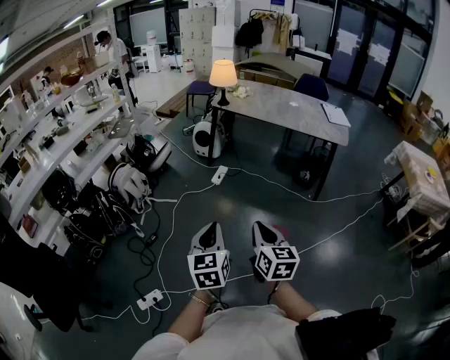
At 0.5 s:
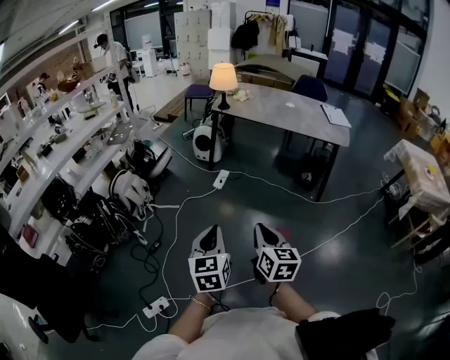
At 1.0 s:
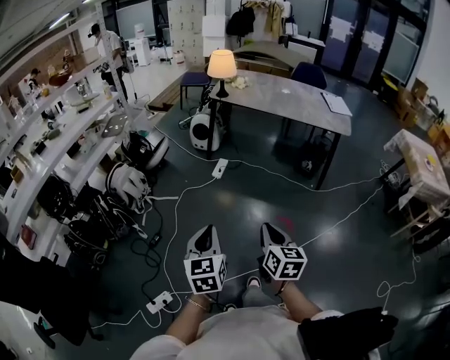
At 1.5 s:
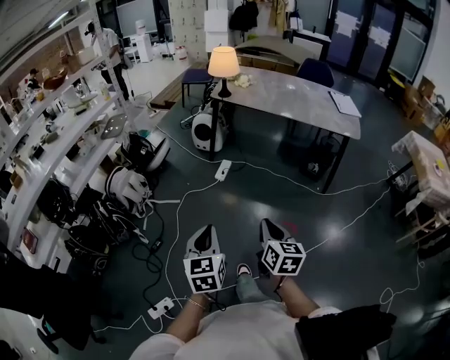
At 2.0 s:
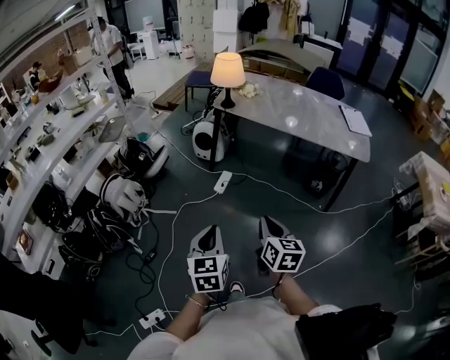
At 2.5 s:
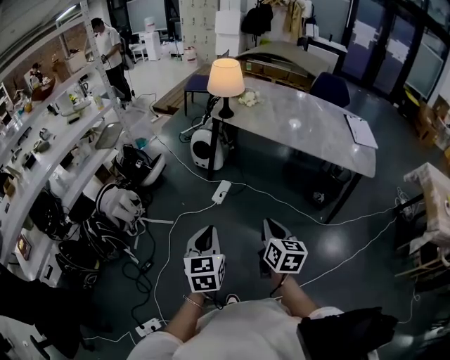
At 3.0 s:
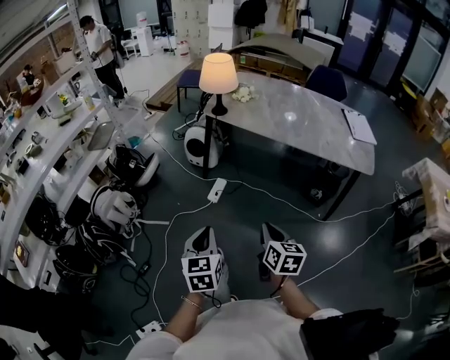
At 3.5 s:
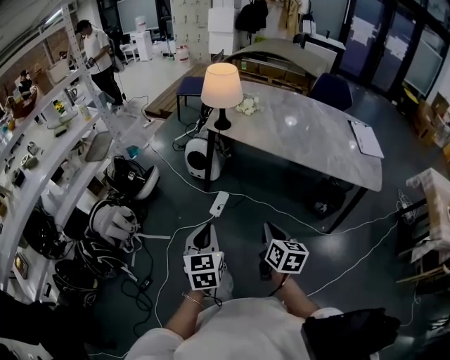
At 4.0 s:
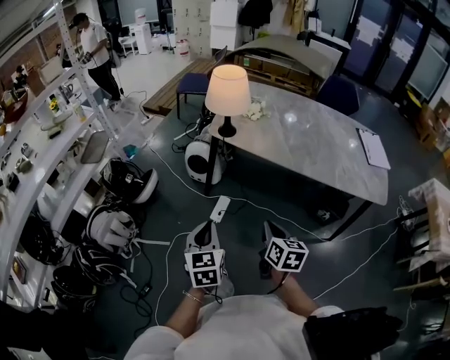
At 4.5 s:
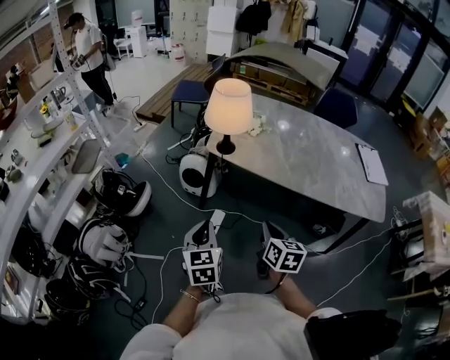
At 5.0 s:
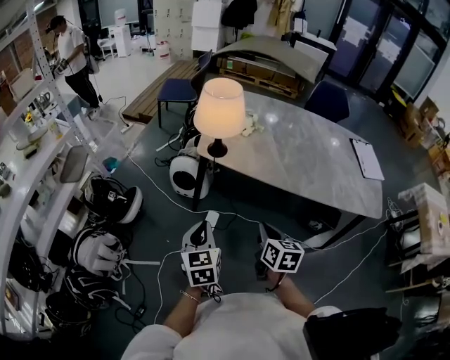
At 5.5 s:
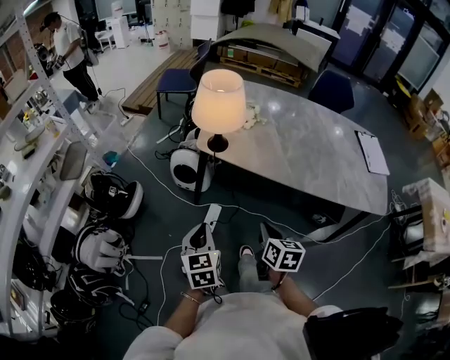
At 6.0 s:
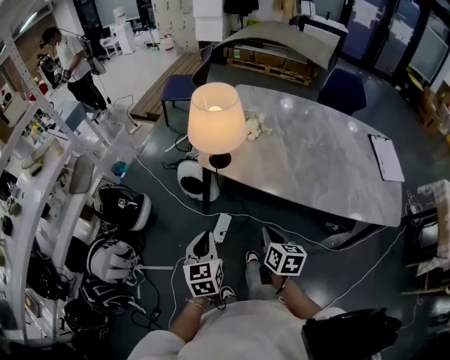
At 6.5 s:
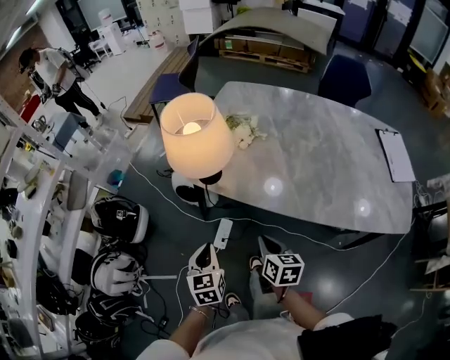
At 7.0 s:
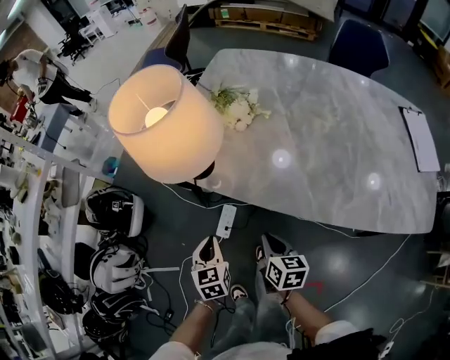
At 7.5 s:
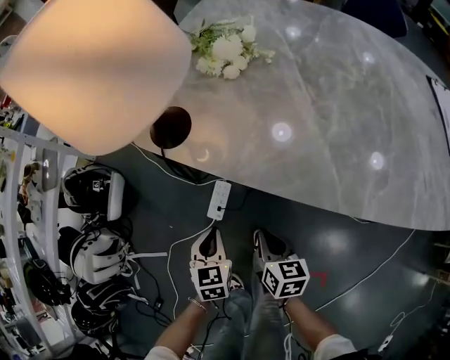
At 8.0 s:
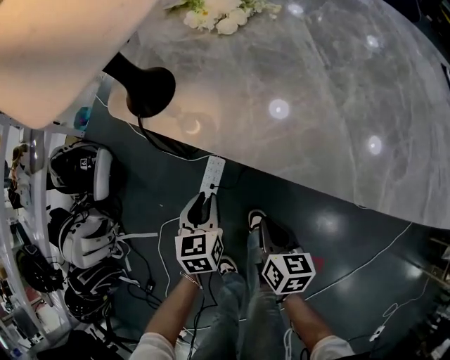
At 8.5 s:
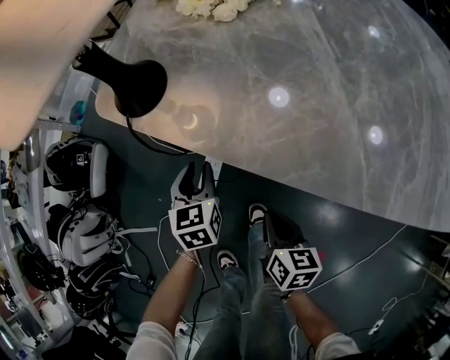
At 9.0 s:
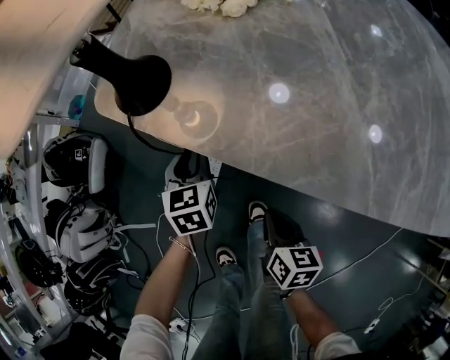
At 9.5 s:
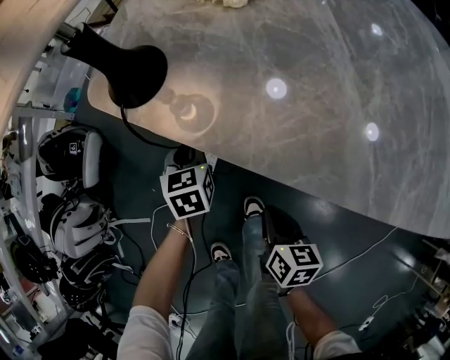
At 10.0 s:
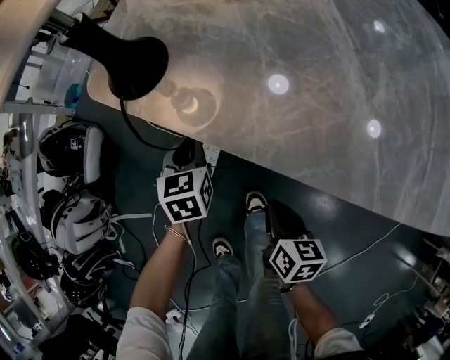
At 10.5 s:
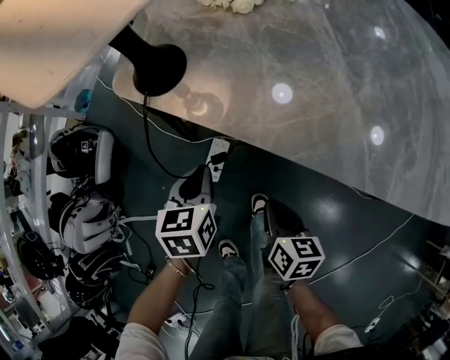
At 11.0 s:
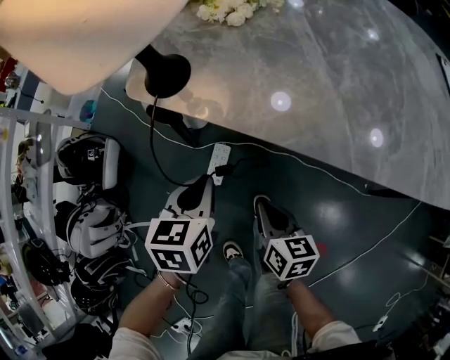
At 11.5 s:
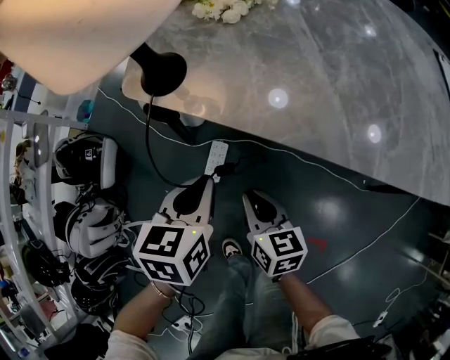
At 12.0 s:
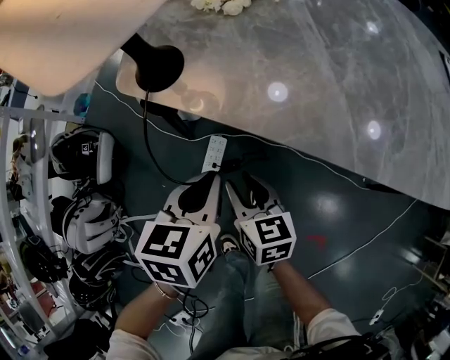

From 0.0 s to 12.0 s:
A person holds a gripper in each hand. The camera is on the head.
From 0.0 s to 2.0 s: Both grippers travel together forward, about 25 cm.
From 2.0 s to 4.0 s: Both grippers move forward, approximately 35 cm.
From 4.0 s to 6.0 s: The two grippers go some 20 cm forward.
From 6.0 s to 8.0 s: The left gripper travels downward and forward by roughly 40 cm, while the right gripper moves downward, some 30 cm.
From 8.0 s to 10.0 s: The left gripper is displaced forward by some 10 cm.
From 10.0 s to 12.0 s: The left gripper shifts about 20 cm upward and backward; the right gripper heads to the left and upward, covering about 15 cm, and opens up.

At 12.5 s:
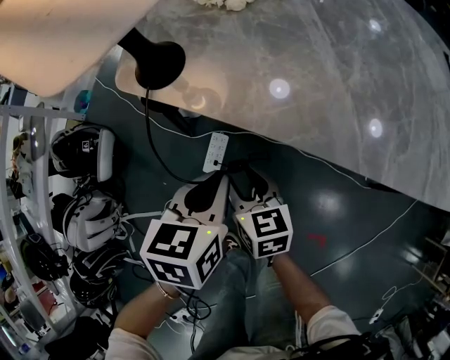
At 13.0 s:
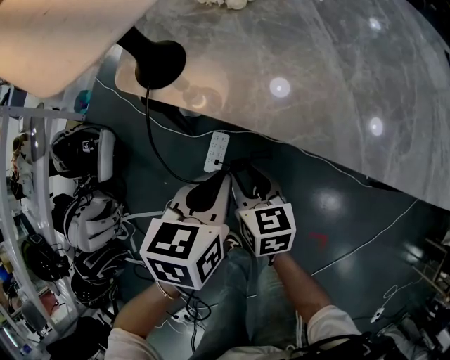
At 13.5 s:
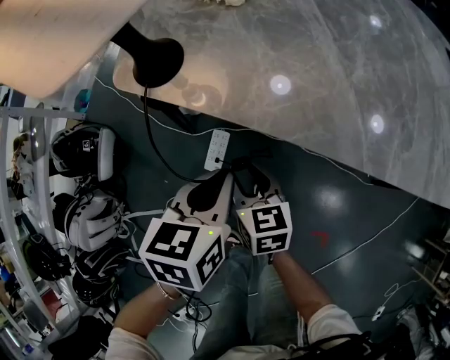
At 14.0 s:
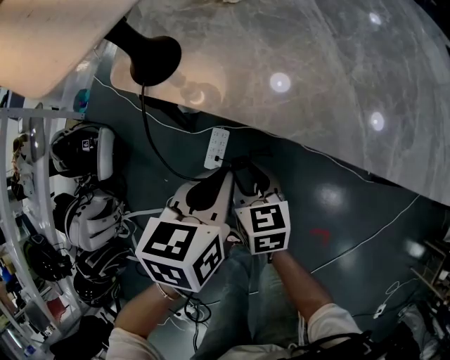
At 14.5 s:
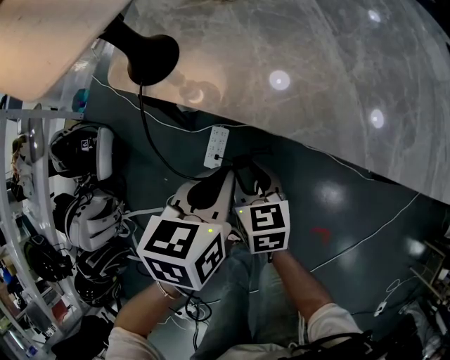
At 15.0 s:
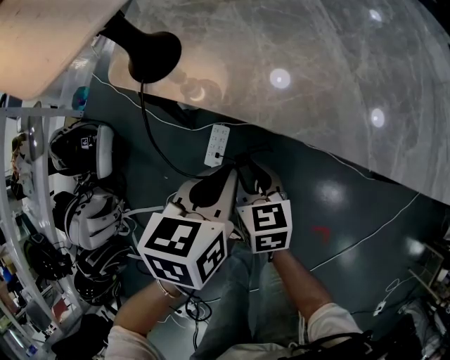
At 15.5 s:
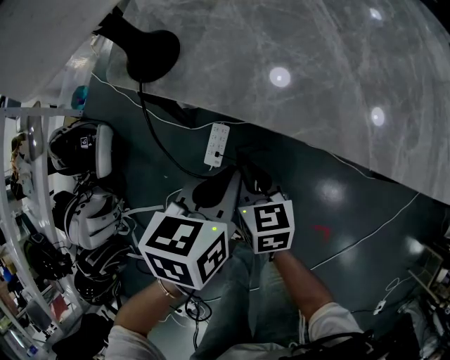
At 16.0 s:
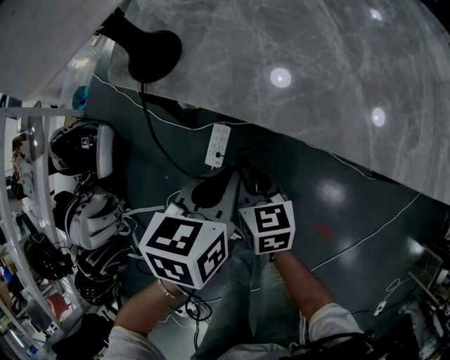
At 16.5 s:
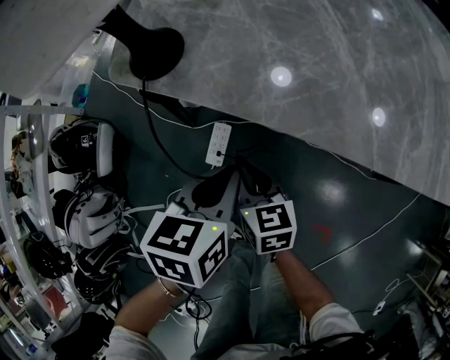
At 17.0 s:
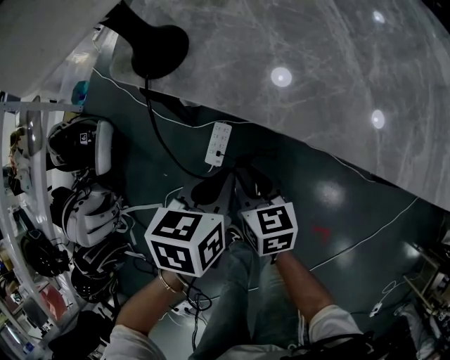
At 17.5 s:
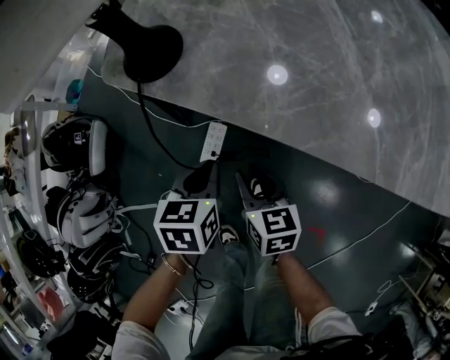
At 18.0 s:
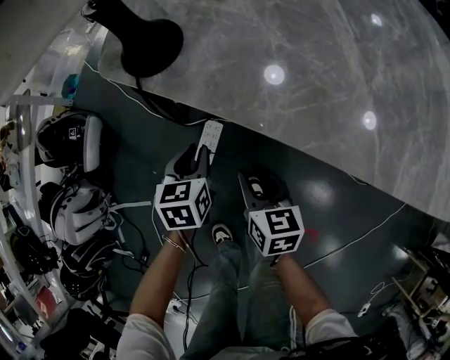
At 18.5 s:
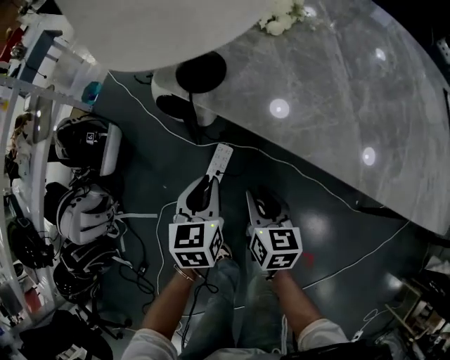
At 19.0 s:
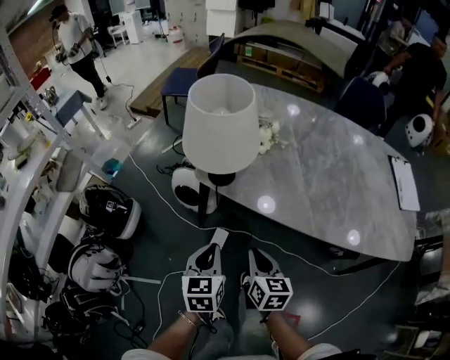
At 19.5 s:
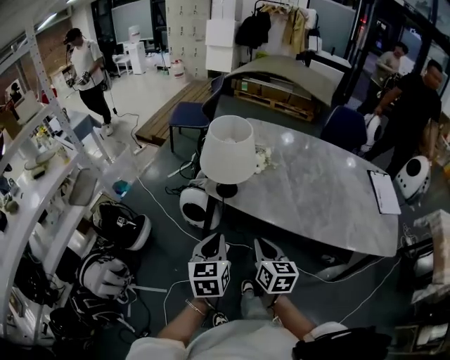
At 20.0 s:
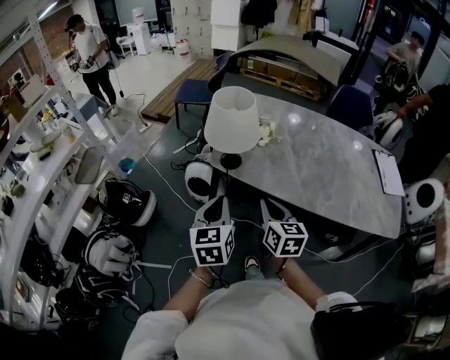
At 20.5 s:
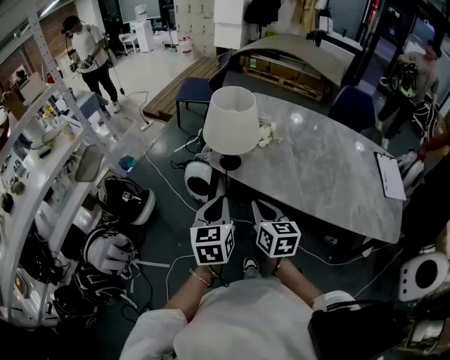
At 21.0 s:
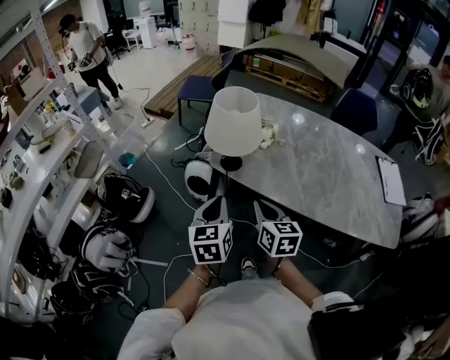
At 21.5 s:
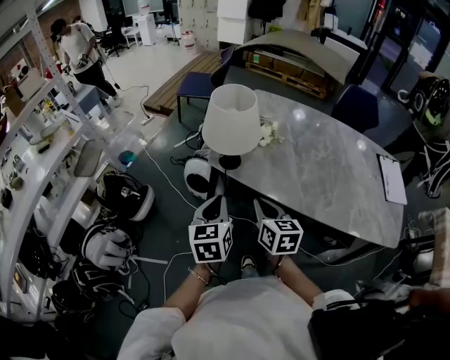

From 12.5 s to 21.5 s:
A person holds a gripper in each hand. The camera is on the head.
From 12.5 s to 14.5 s: The grippers stay close to where they were, moving slightly.
From 14.5 s to 17.0 s: The left gripper moves approximately 5 cm.
From 17.0 s to 19.5 s: Both grippers travel together upward, roughly 35 cm. The right gripper closes; the left gripper swivels approximately 40 degrees.
From 19.5 s to 21.5 s: The right gripper ends up about 5 cm from where it was.

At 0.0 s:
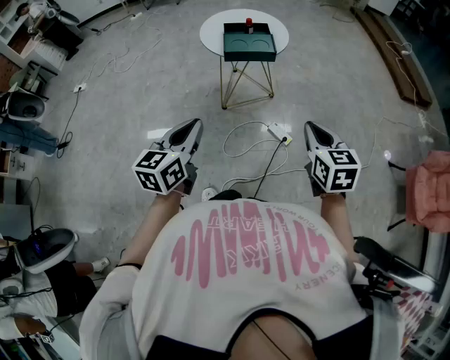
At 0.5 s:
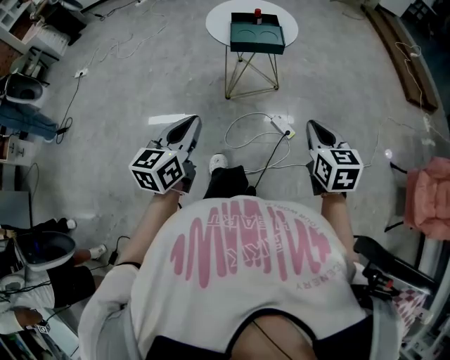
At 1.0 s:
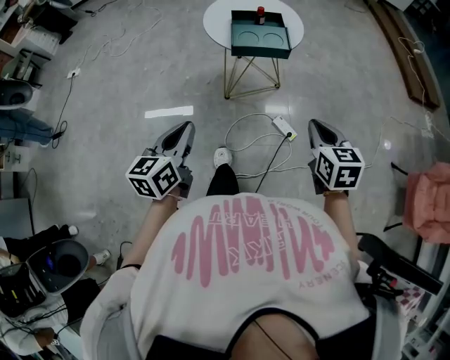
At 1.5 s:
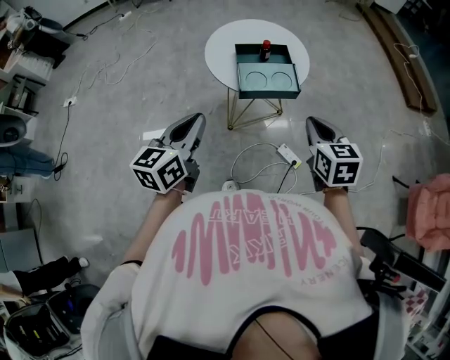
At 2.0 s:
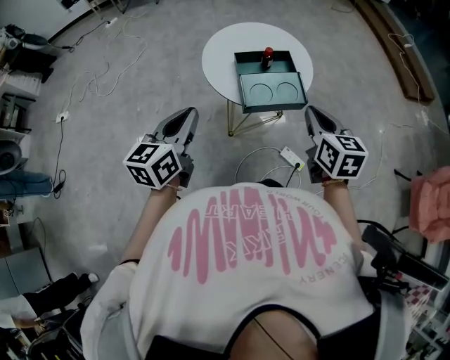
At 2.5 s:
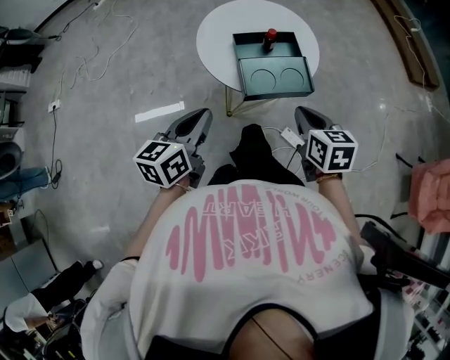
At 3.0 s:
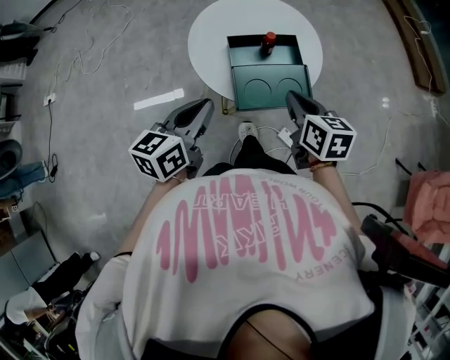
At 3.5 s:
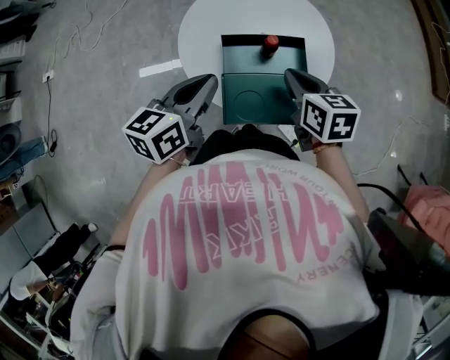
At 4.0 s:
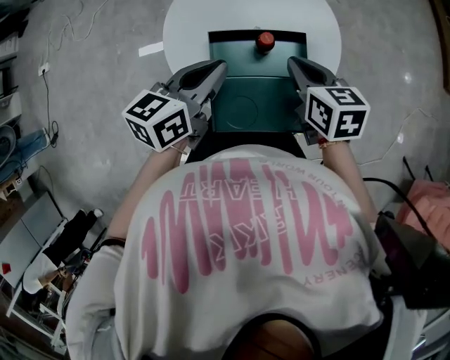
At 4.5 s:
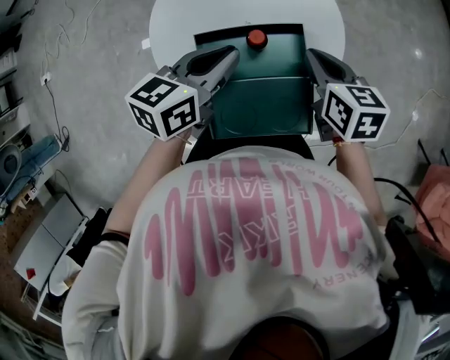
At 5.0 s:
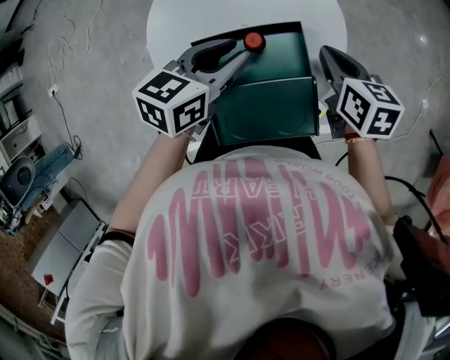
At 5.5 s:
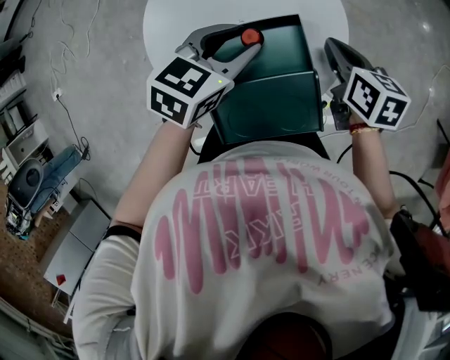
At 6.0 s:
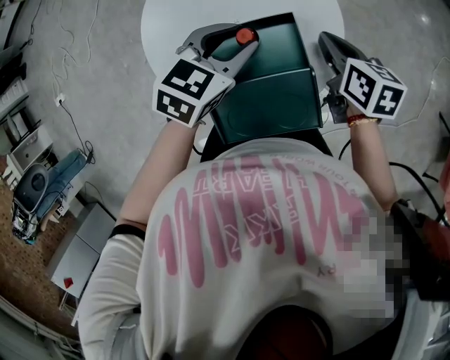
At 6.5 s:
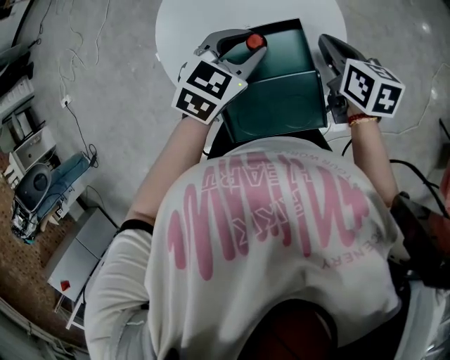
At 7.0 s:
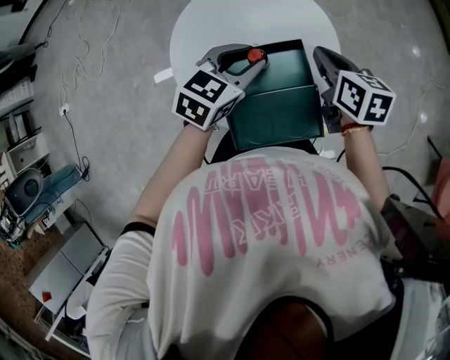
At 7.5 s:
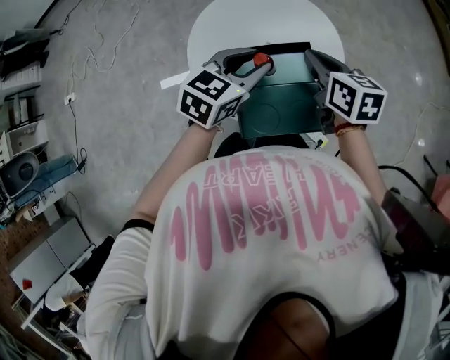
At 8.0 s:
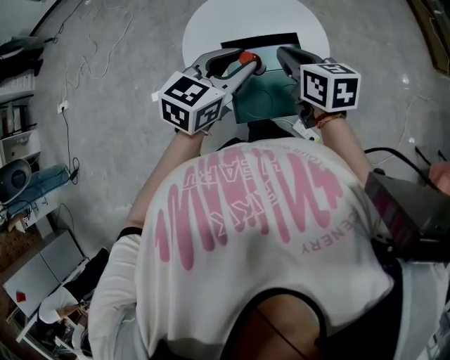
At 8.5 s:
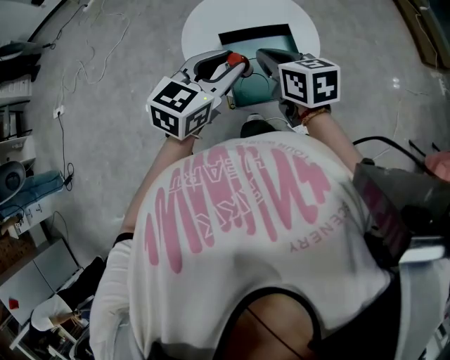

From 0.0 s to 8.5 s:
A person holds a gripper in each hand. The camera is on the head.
From 0.0 s to 2.0 s: Both grippers travel together forward and to the left, some 40 cm.
From 2.0 s to 4.0 s: The right gripper is displaced forward and downward by roughly 35 cm, and turns by about 30 degrees, while the left gripper is displaced forward, downward and to the right by approximately 35 cm, and rotates roughly 20 degrees.
From 4.0 s to 6.5 s: The left gripper shifts about 15 cm to the right, forward and downward, swivels approximately 40 degrees, and opens its fingers, while the right gripper travels to the right and forward by some 10 cm, and changes its angle by approximately 20 degrees.
From 6.5 s to 8.5 s: The left gripper shifts some 25 cm backward and upward, and changes its angle by about 20 degrees, while the right gripper heads backward, to the left and upward, covering approximately 30 cm, and rotates roughly 20 degrees.
